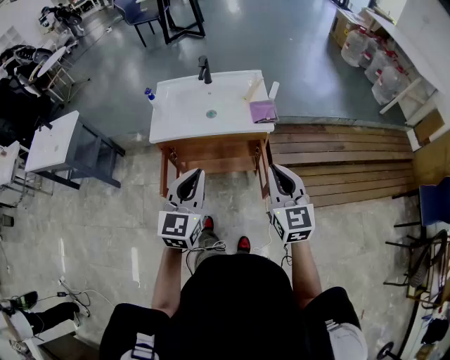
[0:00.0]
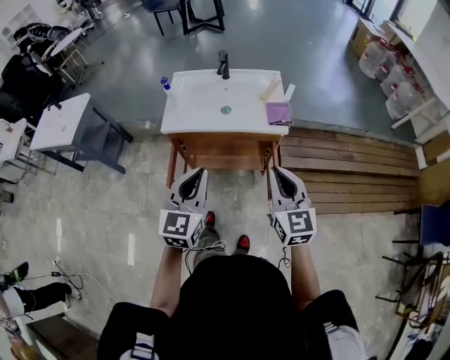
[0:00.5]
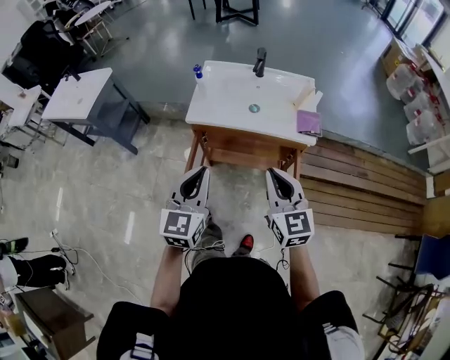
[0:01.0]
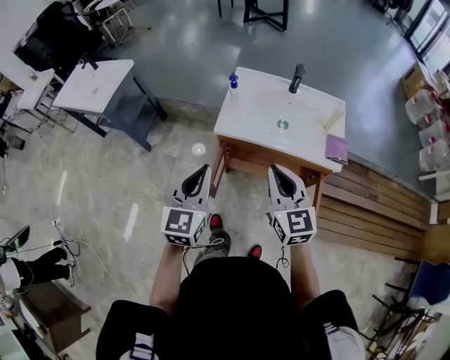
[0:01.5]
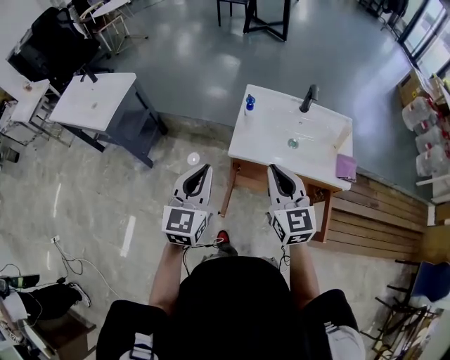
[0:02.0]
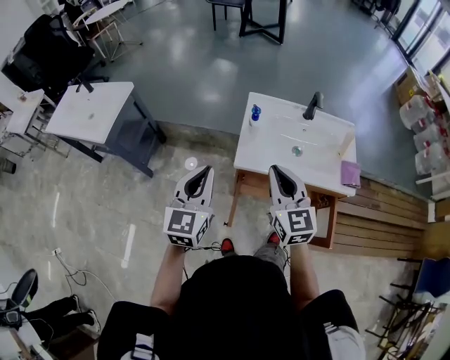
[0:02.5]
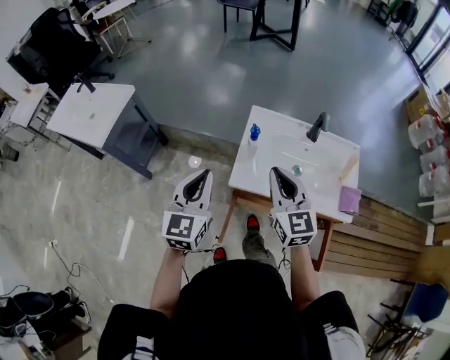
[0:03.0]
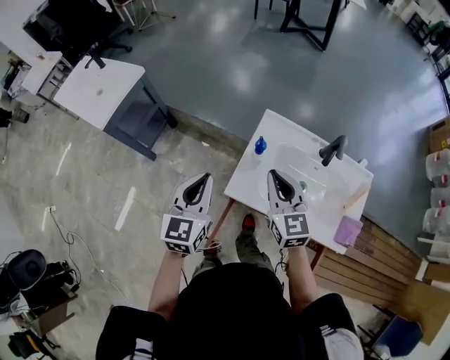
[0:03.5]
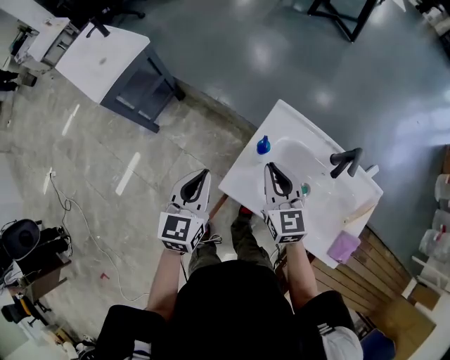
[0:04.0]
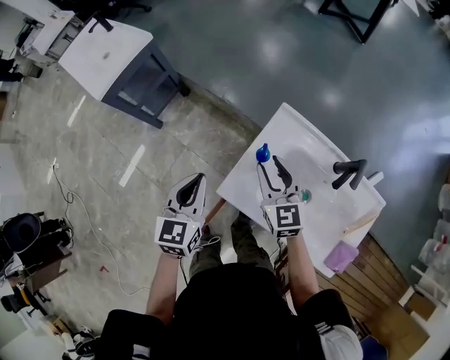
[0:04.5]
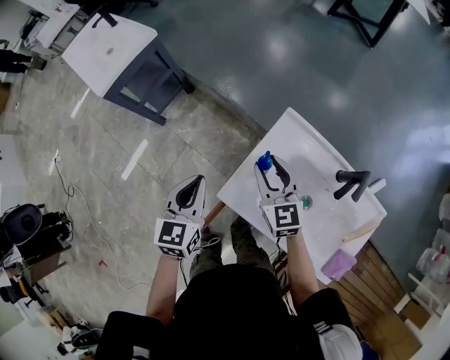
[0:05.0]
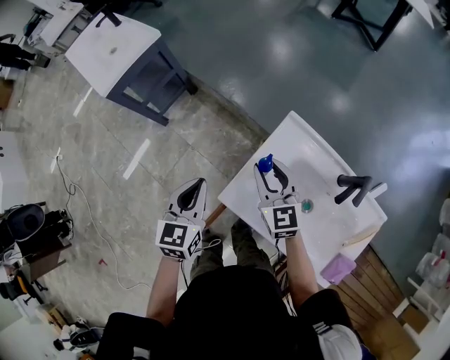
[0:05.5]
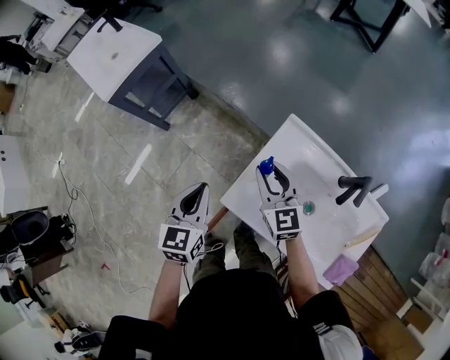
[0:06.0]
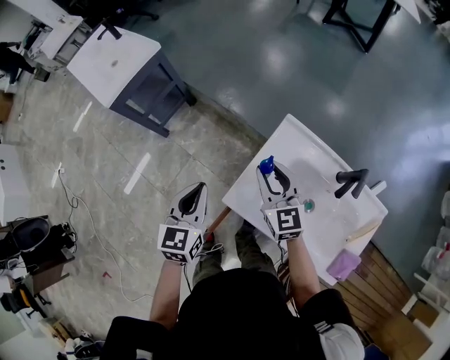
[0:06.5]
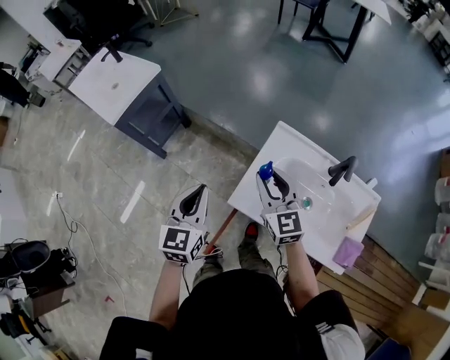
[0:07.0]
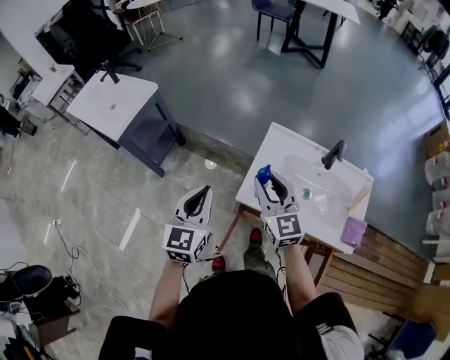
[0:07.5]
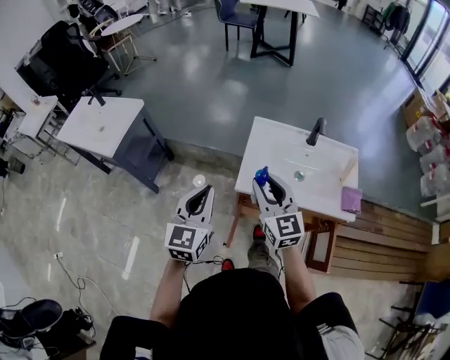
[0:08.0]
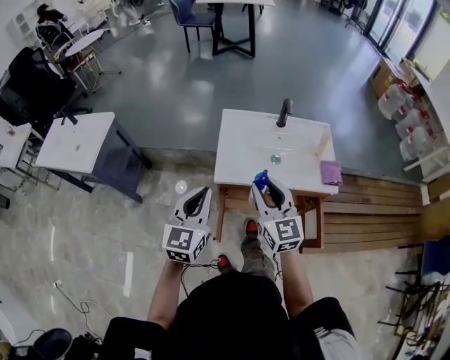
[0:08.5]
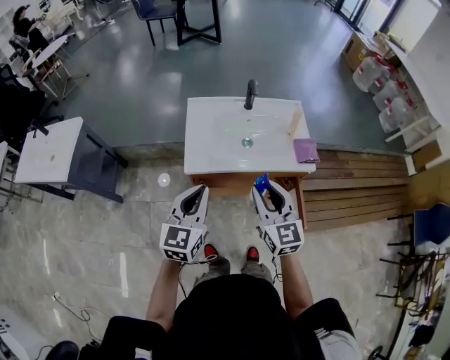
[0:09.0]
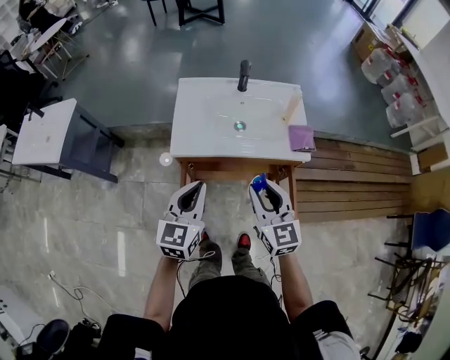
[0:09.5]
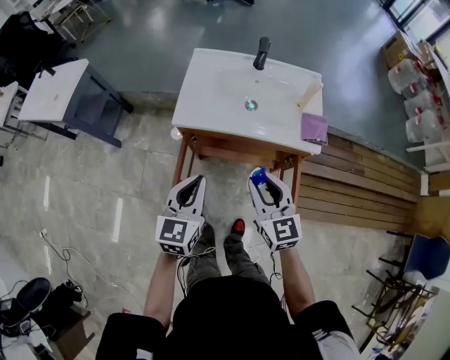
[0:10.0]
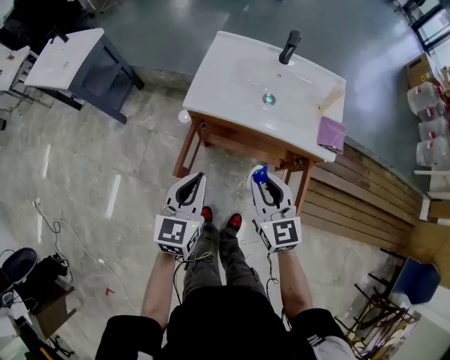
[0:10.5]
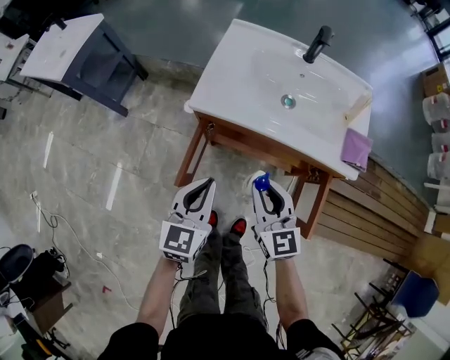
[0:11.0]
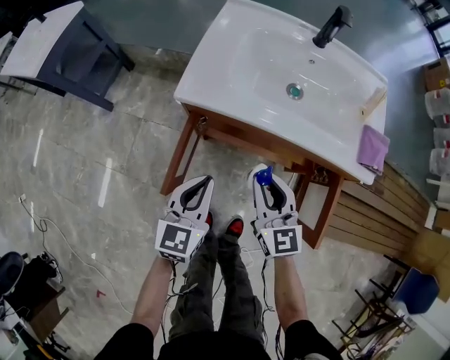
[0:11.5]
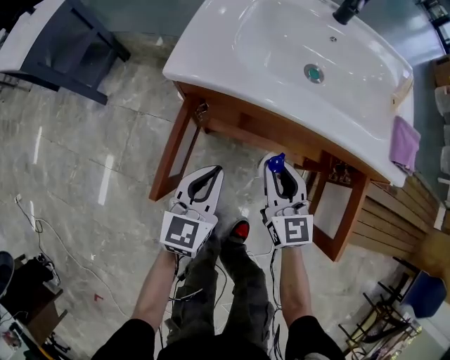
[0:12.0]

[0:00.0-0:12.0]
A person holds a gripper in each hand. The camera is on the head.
0:00.0 to 0:02.0: Both grippers move to the left and forward, approximately 35 cm.
0:02.0 to 0:04.0: Both grippers travel together forward and downward, roughly 25 cm. The right gripper changes its angle by some 20 degrees. The left gripper swivels roughly 20 degrees.
0:04.0 to 0:06.0: The right gripper shifts approximately 5 cm forward, and opens.
0:06.0 to 0:08.0: The left gripper is displaced upward, backward and to the left by roughly 20 cm, and swivels approximately 30 degrees; the right gripper is displaced backward and upward by about 25 cm, and turns by roughly 30 degrees.
0:08.0 to 0:10.0: Both grippers travel together to the right, backward and downward, approximately 30 cm.
0:10.0 to 0:12.0: The two grippers go approximately 30 cm downward.

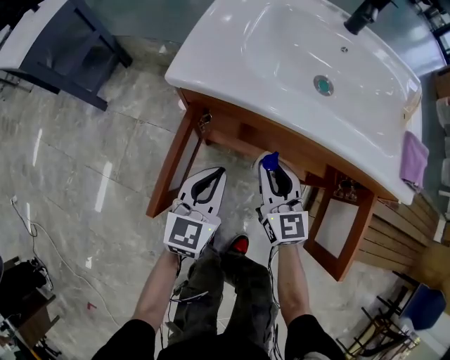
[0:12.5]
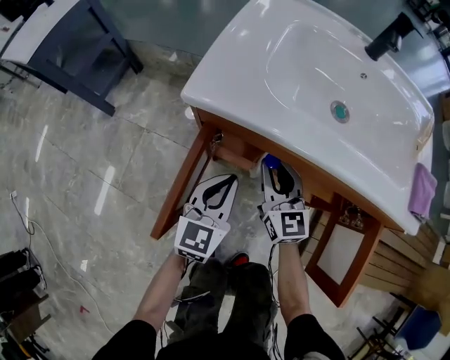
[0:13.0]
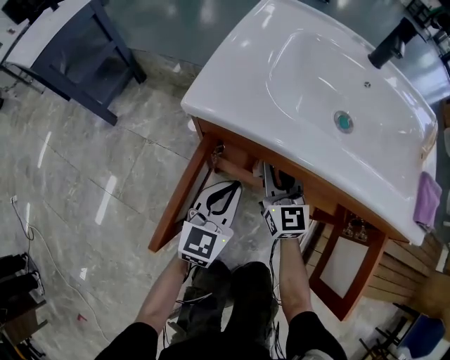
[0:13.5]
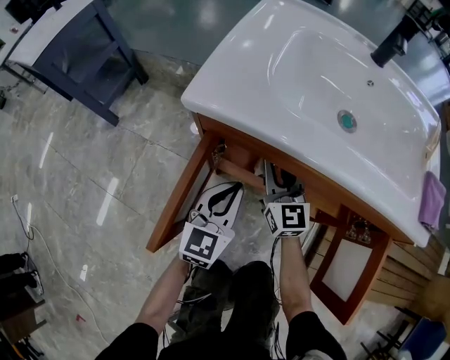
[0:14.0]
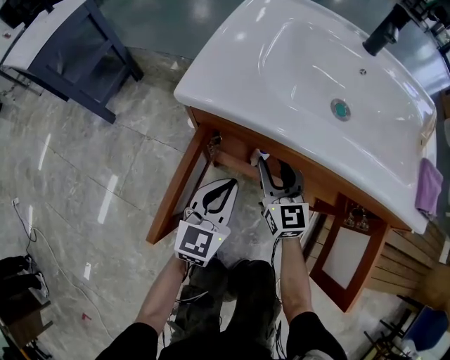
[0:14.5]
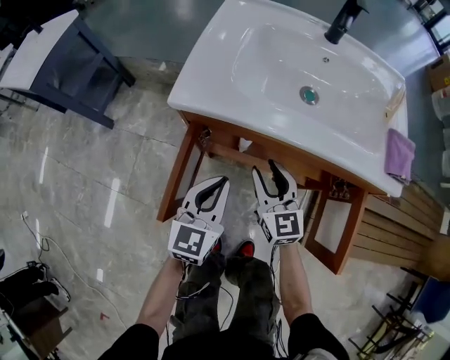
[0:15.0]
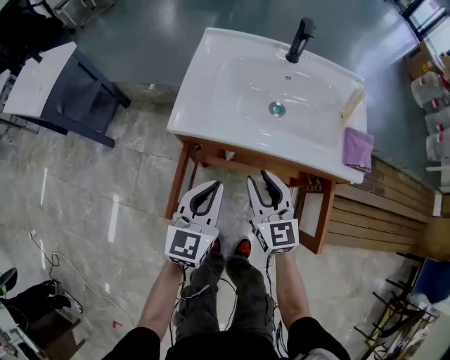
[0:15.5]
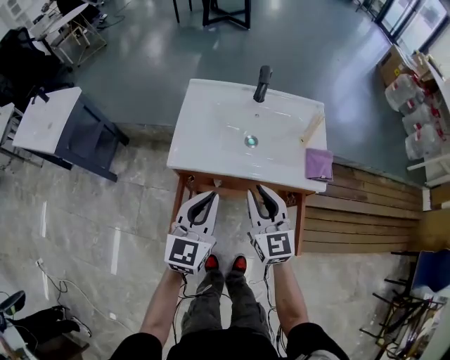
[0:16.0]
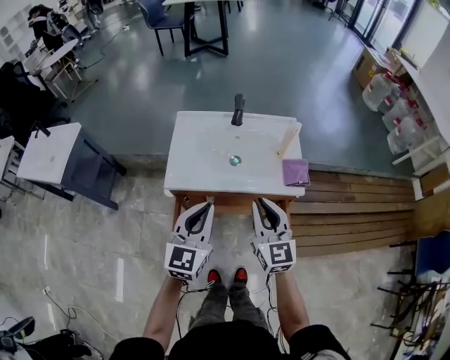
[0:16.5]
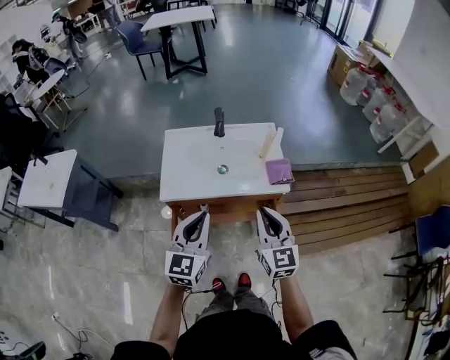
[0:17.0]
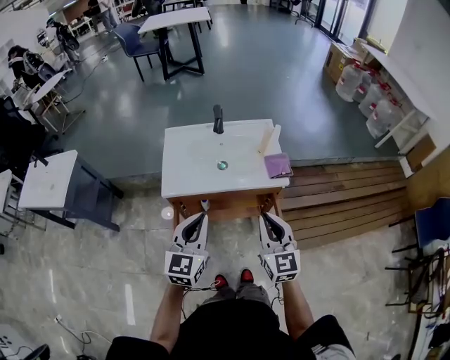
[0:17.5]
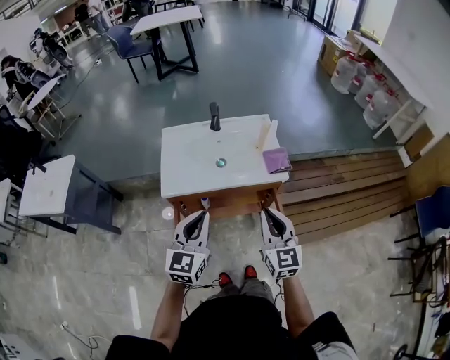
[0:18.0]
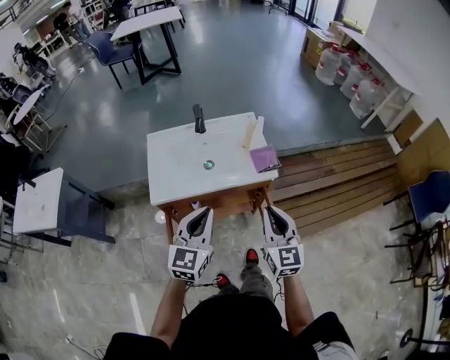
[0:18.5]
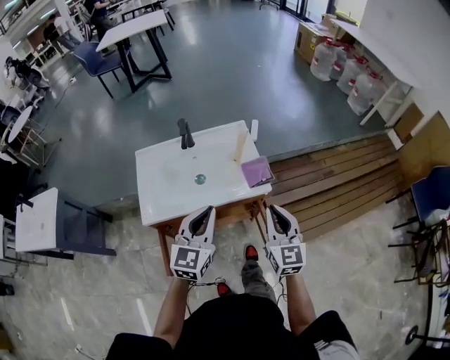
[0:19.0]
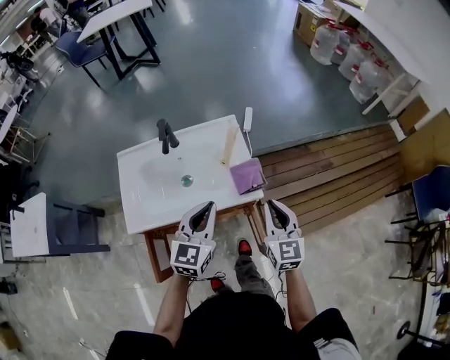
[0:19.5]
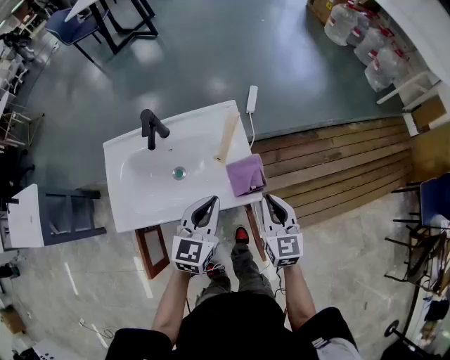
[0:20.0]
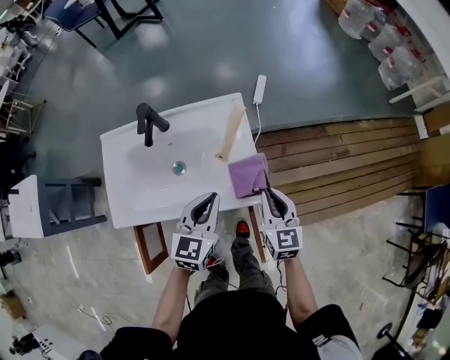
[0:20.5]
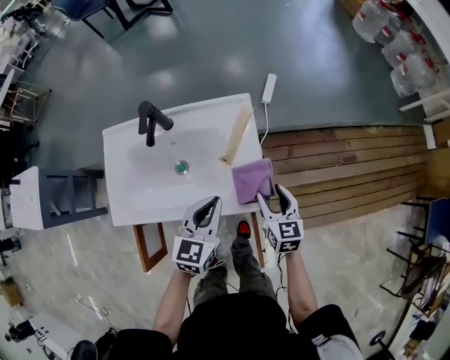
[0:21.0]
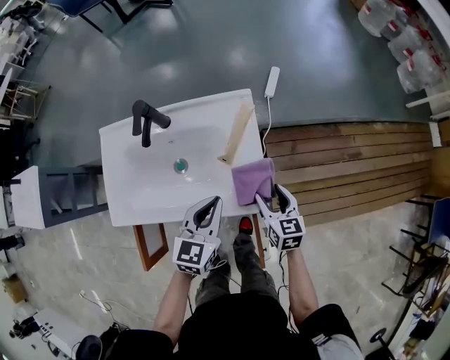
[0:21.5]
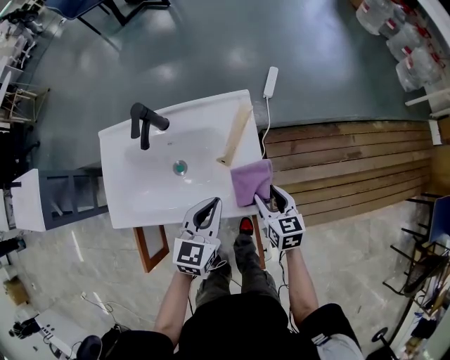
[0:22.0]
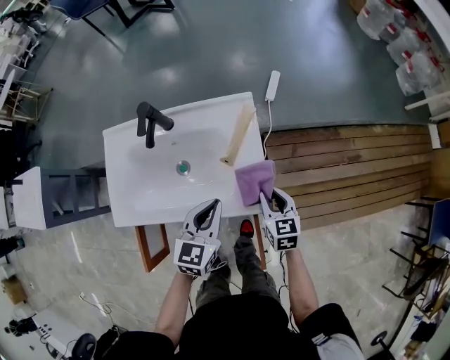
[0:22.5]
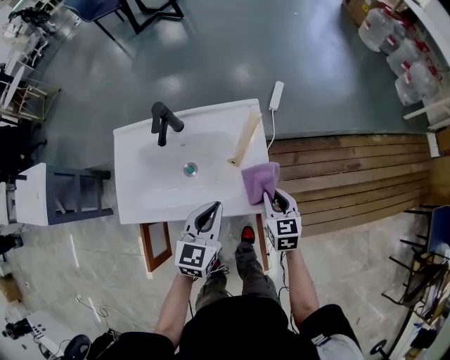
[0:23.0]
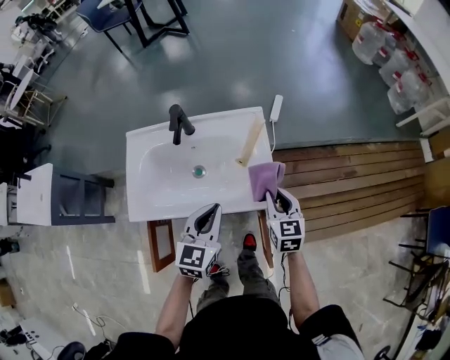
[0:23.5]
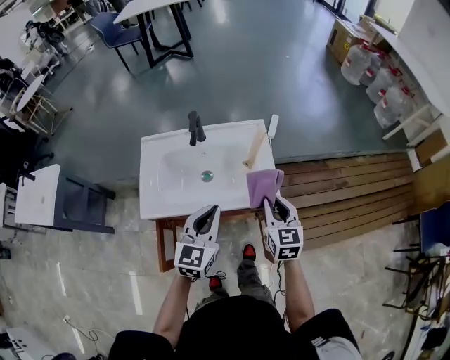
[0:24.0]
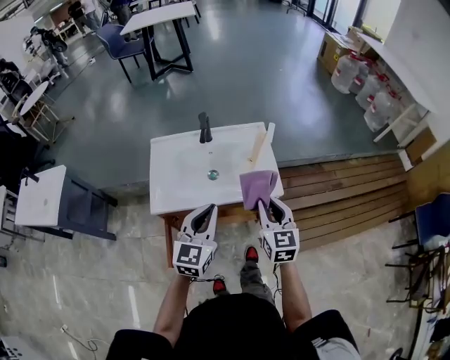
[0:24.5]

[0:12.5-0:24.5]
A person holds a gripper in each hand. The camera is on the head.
0:12.5 to 0:14.5: The left gripper moves approximately 5 cm; the right gripper is displaced forward by about 10 cm, and opens up.
0:14.5 to 0:16.5: Both grippers travel together upward, some 40 cm. The right gripper closes its fingers.
0:16.5 to 0:18.5: The right gripper moves to the right and backward, some 15 cm. The left gripper moves to the right, approximately 5 cm.
0:18.5 to 0:20.5: The left gripper shifts roughly 35 cm forward, downward and to the right; the right gripper travels forward and downward by approximately 35 cm, and turns by roughly 20 degrees.
0:20.5 to 0:22.5: The right gripper goes about 10 cm downward, and opens, then closes again.
0:22.5 to 0:24.5: The left gripper is displaced backward, upward and to the left by some 30 cm, and turns by some 20 degrees. The right gripper moves upward, backward and to the left, some 30 cm, and changes its angle by approximately 20 degrees.

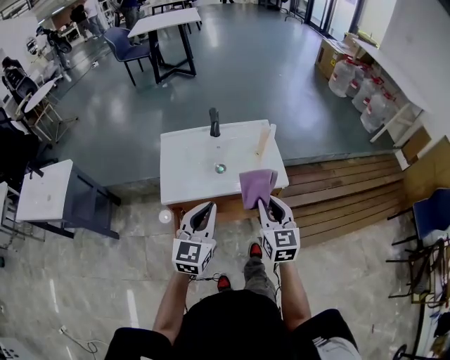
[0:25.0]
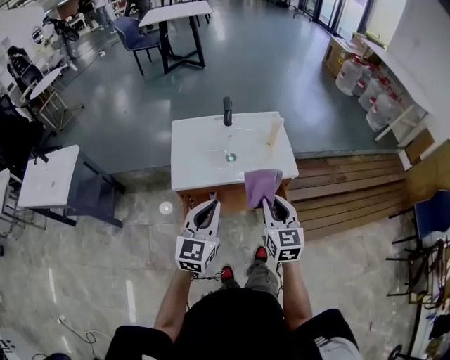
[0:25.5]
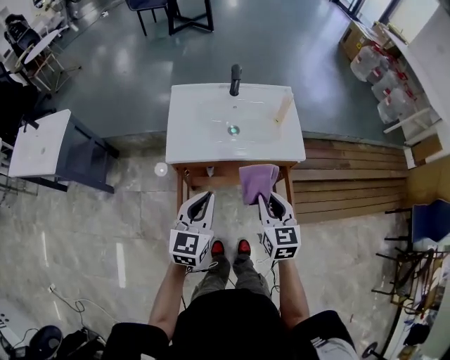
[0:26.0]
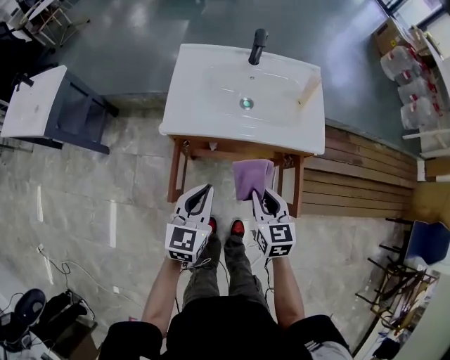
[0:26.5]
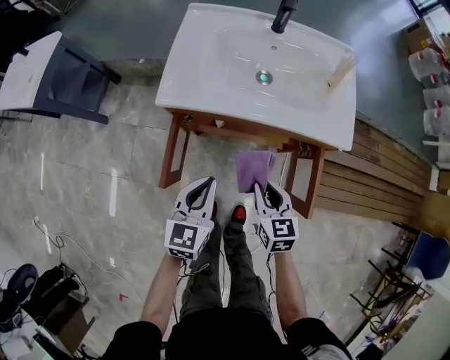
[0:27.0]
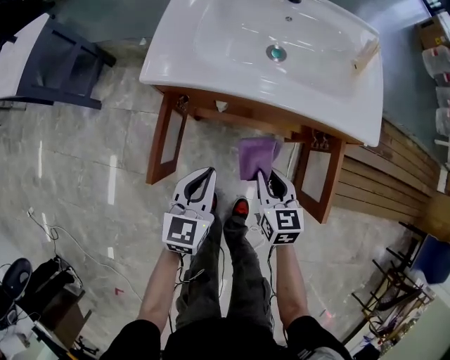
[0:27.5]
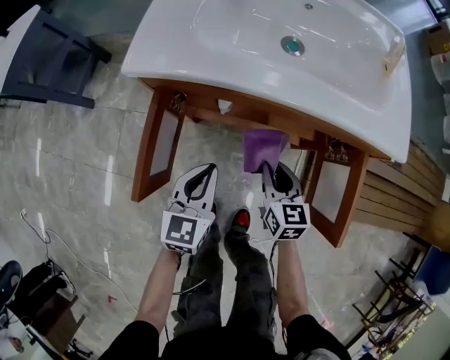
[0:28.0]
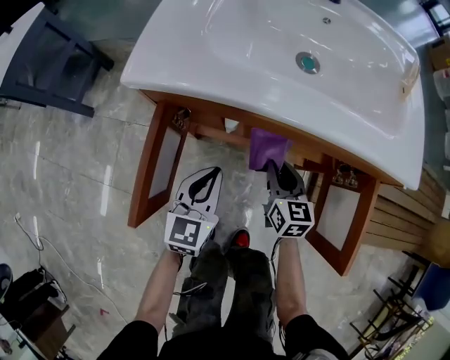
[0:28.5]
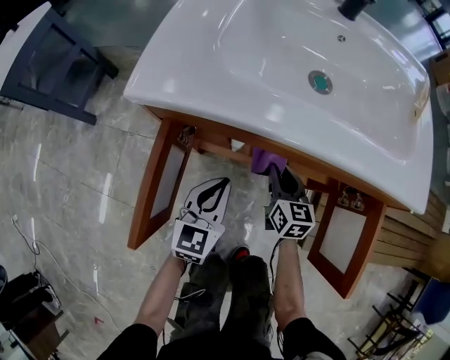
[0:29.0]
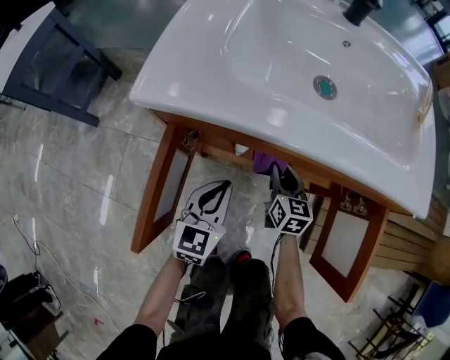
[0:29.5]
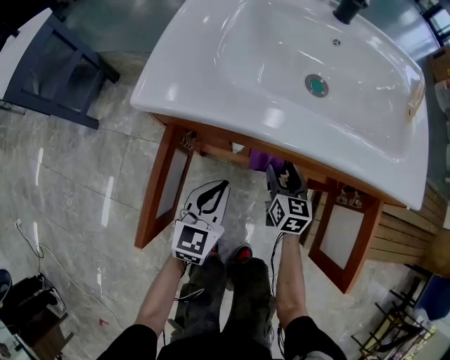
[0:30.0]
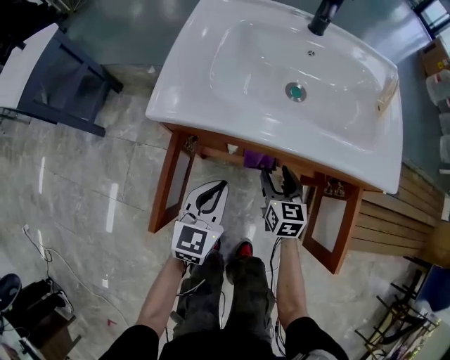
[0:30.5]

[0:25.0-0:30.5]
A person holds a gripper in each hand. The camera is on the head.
0:25.0 to 0:27.0: Both grippers move downward, approximately 25 cm. The right gripper changes its angle by approximately 30 degrees. The left gripper rotates roughly 30 degrees.
0:27.0 to 0:28.5: The left gripper is displaced downward by approximately 20 cm. The right gripper heads downward and forward, covering about 25 cm.
0:28.5 to 0:30.5: The right gripper opens; the left gripper travels upward by approximately 5 cm.
